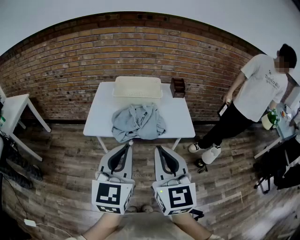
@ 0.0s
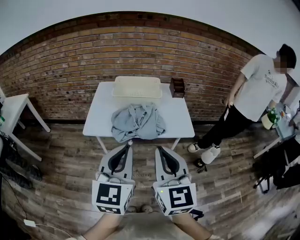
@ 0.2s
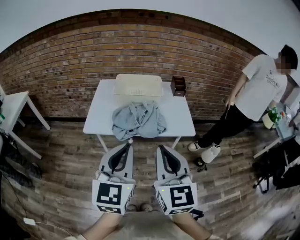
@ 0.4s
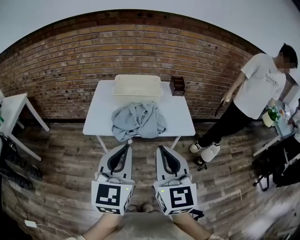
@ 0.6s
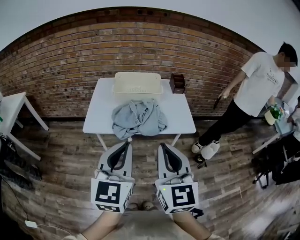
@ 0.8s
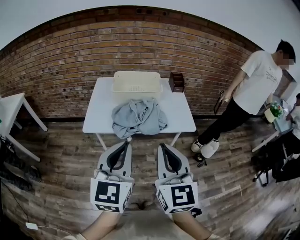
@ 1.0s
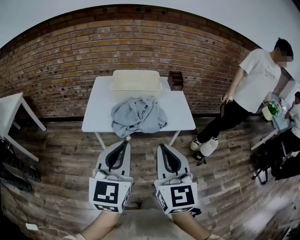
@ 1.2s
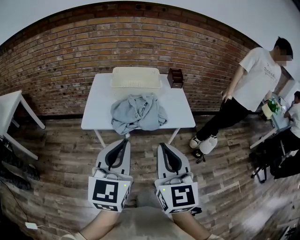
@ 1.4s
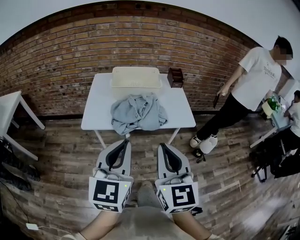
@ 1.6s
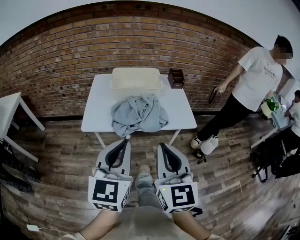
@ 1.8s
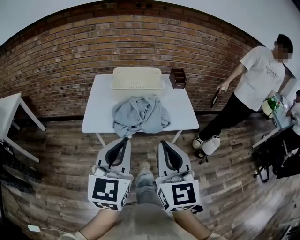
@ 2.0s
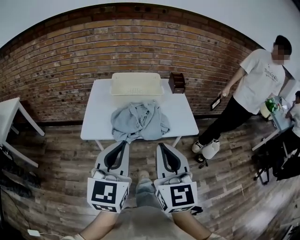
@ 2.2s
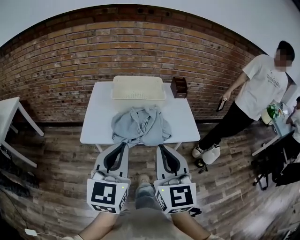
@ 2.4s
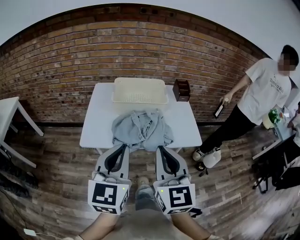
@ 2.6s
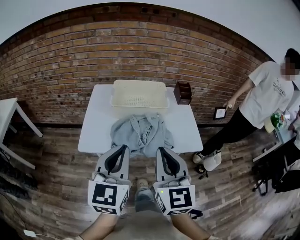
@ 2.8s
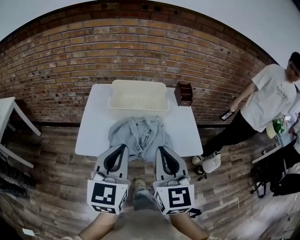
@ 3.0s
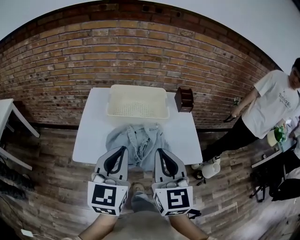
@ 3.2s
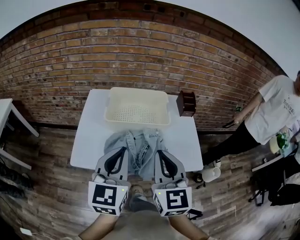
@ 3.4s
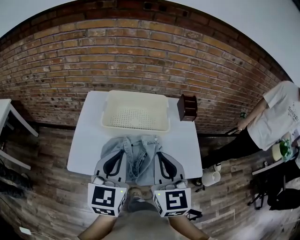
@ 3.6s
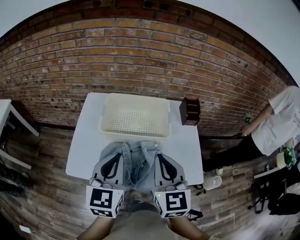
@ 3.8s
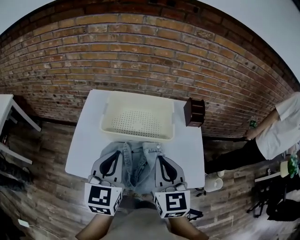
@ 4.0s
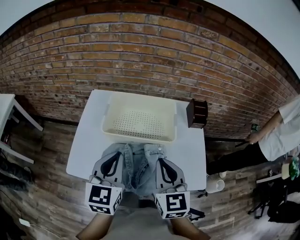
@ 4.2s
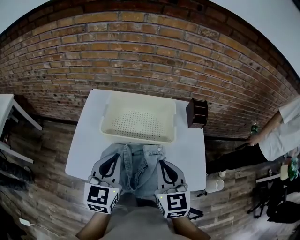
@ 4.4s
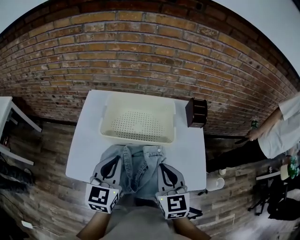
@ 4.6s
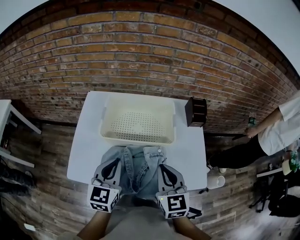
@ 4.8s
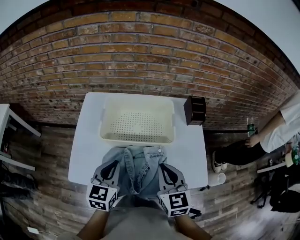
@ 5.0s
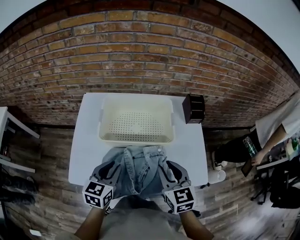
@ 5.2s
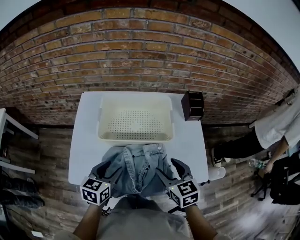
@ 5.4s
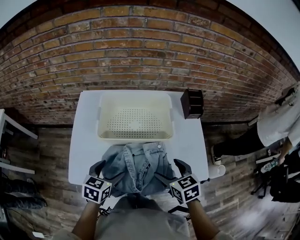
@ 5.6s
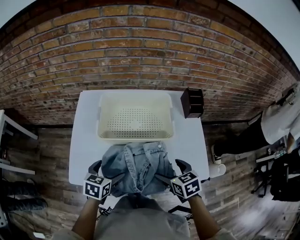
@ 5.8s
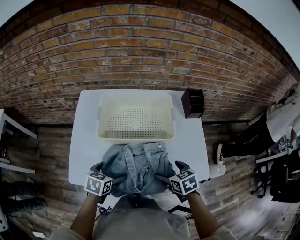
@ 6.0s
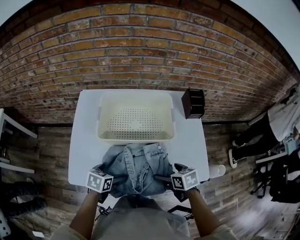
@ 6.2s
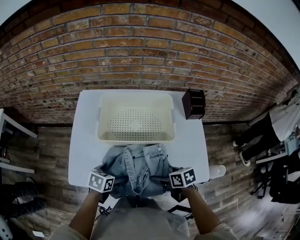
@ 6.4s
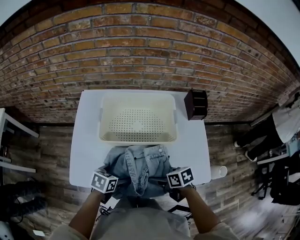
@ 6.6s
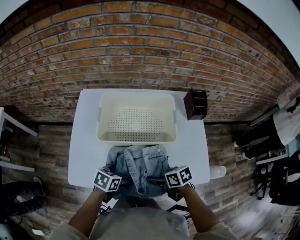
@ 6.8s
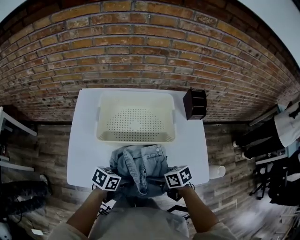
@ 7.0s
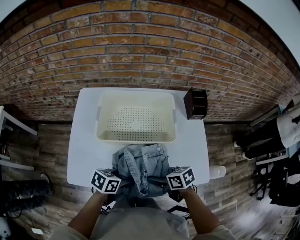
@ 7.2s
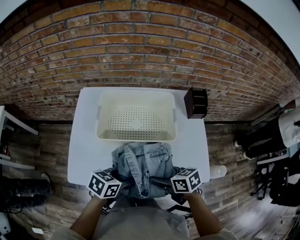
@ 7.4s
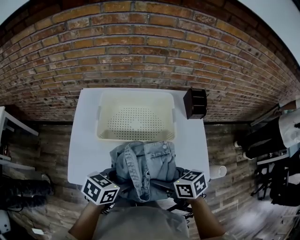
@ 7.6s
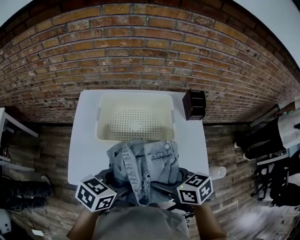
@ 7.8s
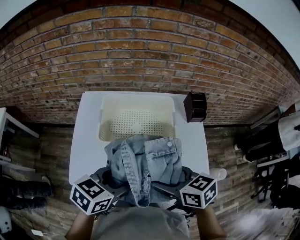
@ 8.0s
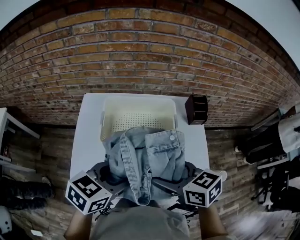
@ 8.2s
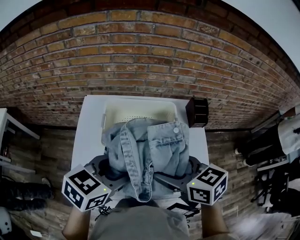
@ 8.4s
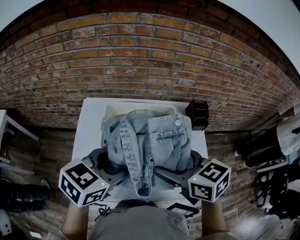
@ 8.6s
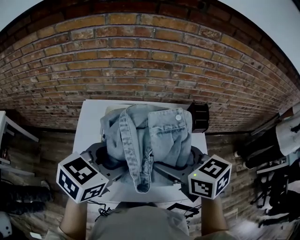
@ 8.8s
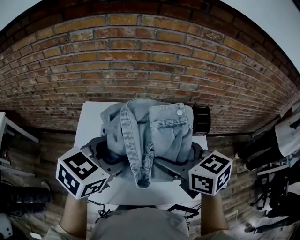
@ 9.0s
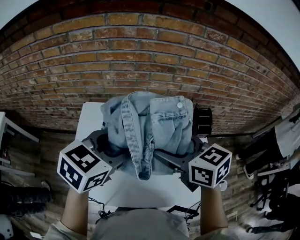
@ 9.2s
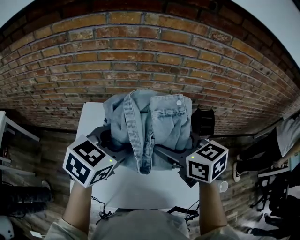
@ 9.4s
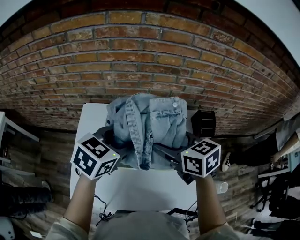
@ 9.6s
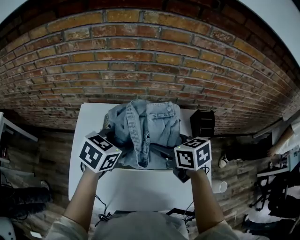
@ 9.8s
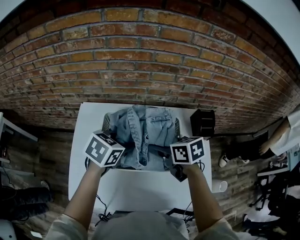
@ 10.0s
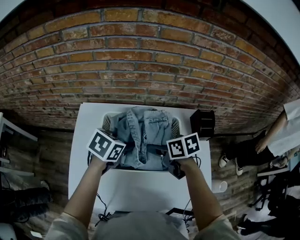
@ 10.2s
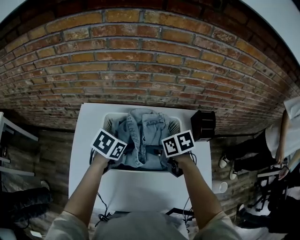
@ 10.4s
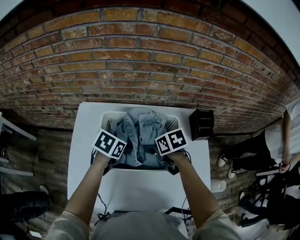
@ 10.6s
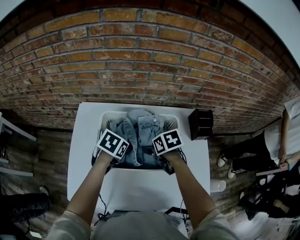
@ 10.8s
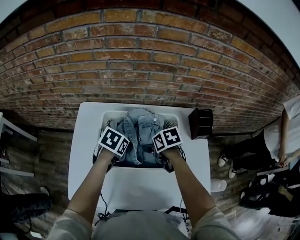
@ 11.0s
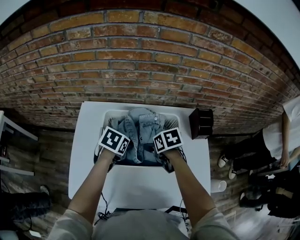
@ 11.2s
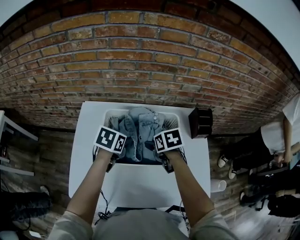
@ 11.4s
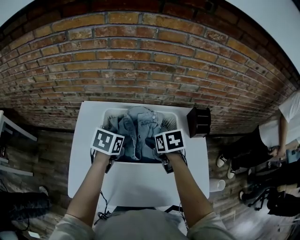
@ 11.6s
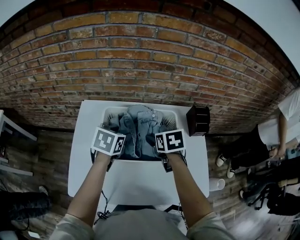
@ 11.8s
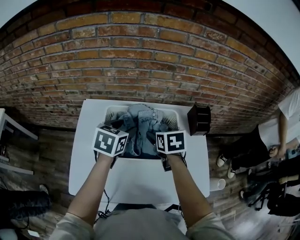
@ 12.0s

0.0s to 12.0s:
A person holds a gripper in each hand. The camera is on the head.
0.0s to 1.6s: The grippers make only small movements.
1.6s to 3.0s: The grippers both shift forward by roughly 20 cm.
3.0s to 4.4s: Both grippers move forward and downward, about 20 cm.
4.4s to 6.0s: The two grippers go approximately 20 cm downward. The right gripper points its fingers approximately 40 degrees further downward, and opens up. The left gripper angles its fingers downward, by approximately 40 degrees, and opens.
6.0s to 7.6s: Both grippers move upward, roughly 10 cm. The right gripper changes its angle by roughly 20 degrees, while the left gripper closes up.
7.6s to 9.0s: The grippers both shift upward and forward by roughly 25 cm. The right gripper swivels some 20 degrees; the left gripper changes its angle by about 30 degrees.
9.0s to 10.4s: The grippers both shift downward and forward by some 25 cm. The left gripper rotates roughly 30 degrees, while the right gripper turns by approximately 30 degrees.
10.4s to 12.0s: The left gripper goes approximately 10 cm upward, and swivels approximately 20 degrees, while the right gripper ends up about 5 cm from where it was, and turns by about 30 degrees.

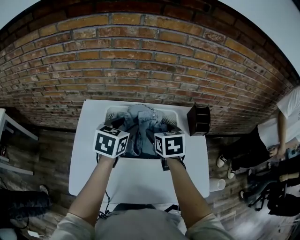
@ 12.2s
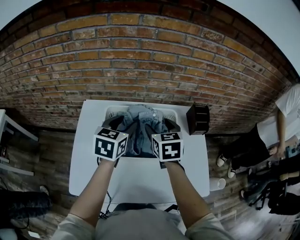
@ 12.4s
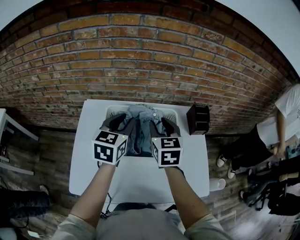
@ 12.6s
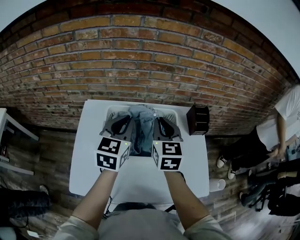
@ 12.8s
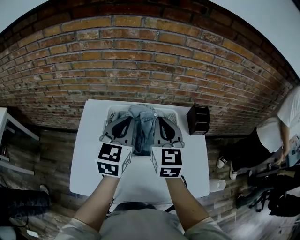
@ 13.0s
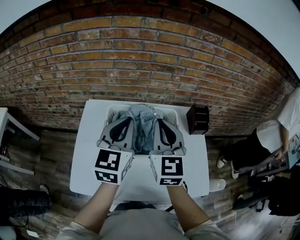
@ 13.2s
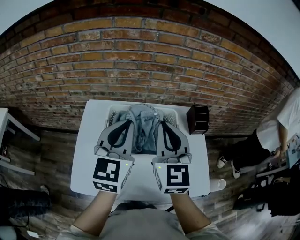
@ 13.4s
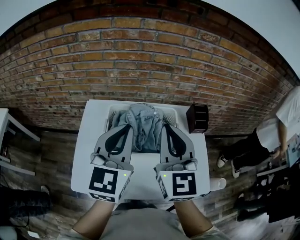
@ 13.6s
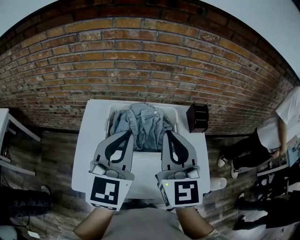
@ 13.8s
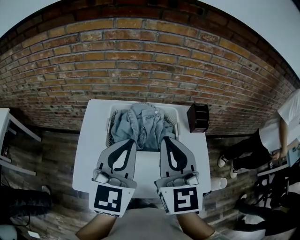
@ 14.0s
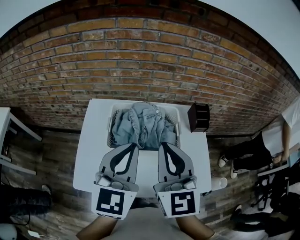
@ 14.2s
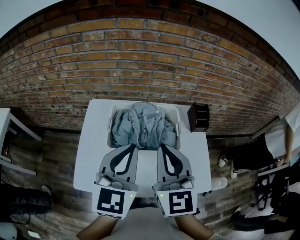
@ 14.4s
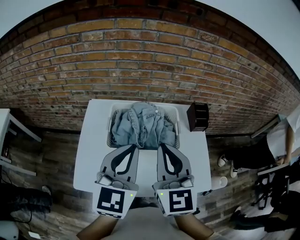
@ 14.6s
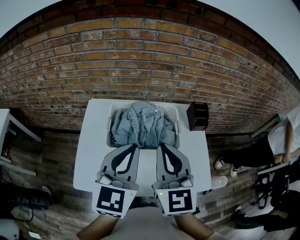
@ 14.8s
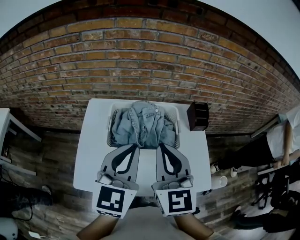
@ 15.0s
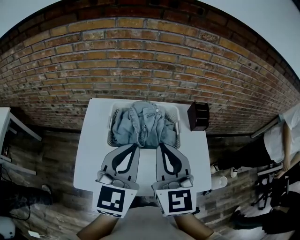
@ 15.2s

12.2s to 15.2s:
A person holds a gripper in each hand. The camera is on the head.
12.2s to 13.8s: Both grippers move upward and backward, about 25 cm. The right gripper angles its fingers upward, by about 40 degrees, and closes, while the left gripper turns by approximately 30 degrees, and closes its fingers.
13.8s to 15.2s: The right gripper moves approximately 5 cm.

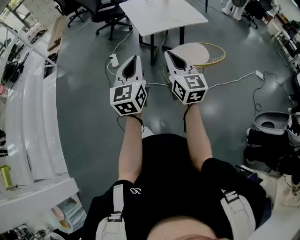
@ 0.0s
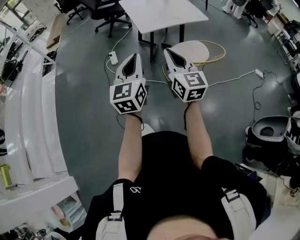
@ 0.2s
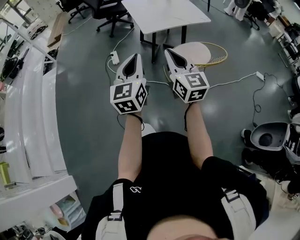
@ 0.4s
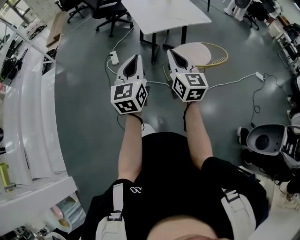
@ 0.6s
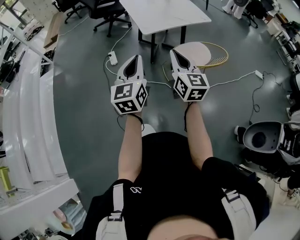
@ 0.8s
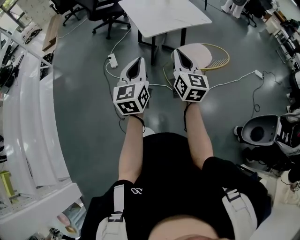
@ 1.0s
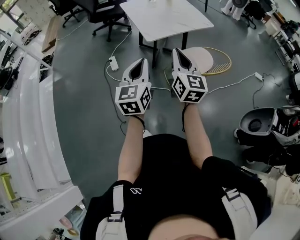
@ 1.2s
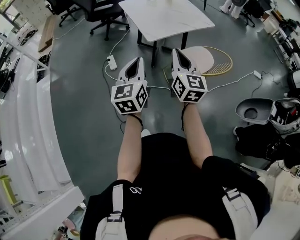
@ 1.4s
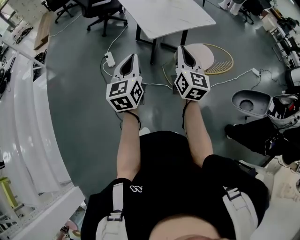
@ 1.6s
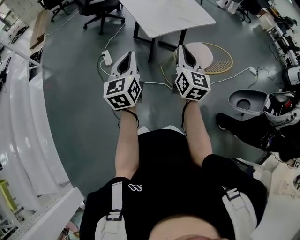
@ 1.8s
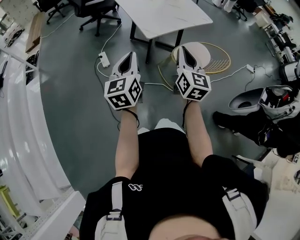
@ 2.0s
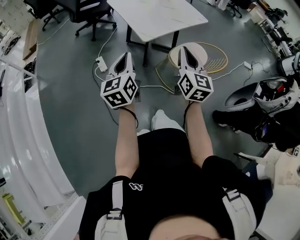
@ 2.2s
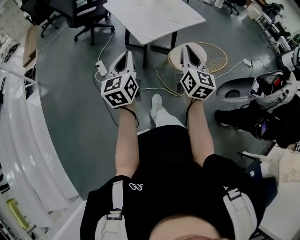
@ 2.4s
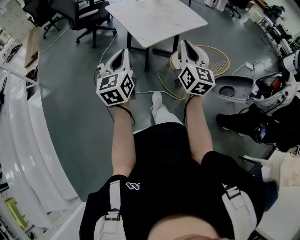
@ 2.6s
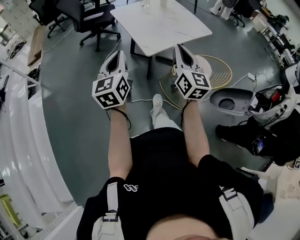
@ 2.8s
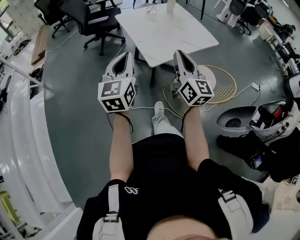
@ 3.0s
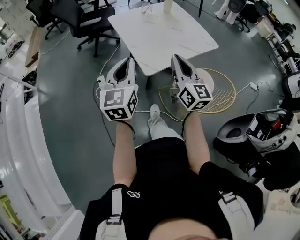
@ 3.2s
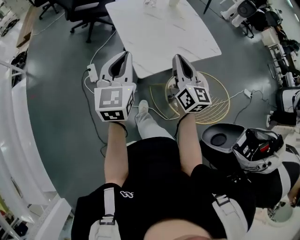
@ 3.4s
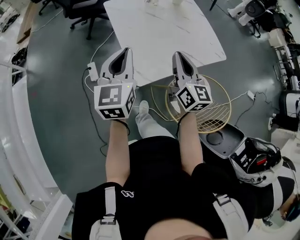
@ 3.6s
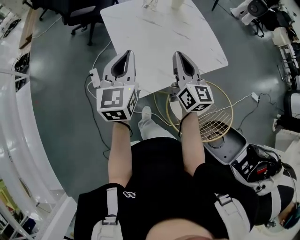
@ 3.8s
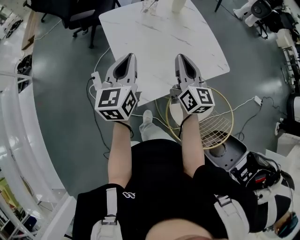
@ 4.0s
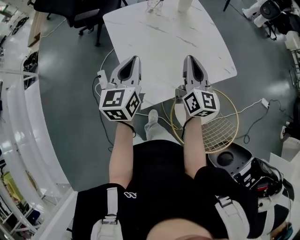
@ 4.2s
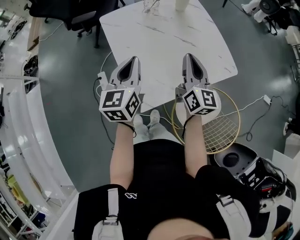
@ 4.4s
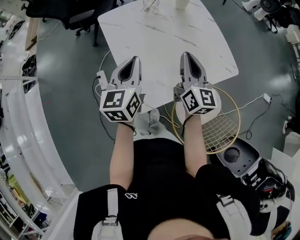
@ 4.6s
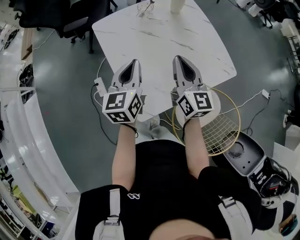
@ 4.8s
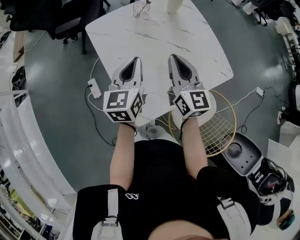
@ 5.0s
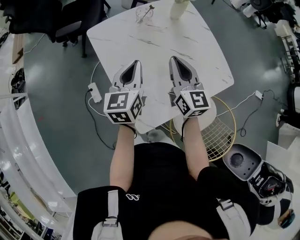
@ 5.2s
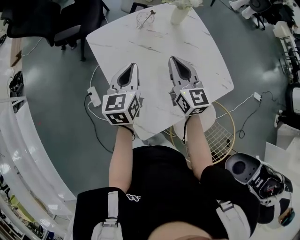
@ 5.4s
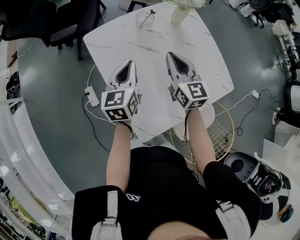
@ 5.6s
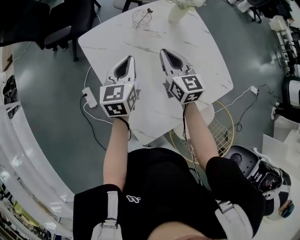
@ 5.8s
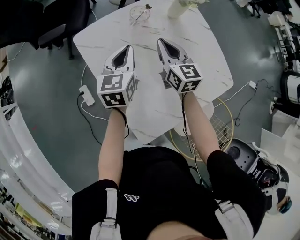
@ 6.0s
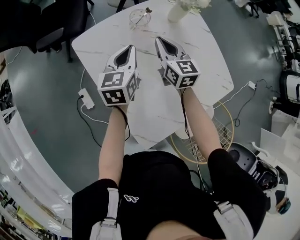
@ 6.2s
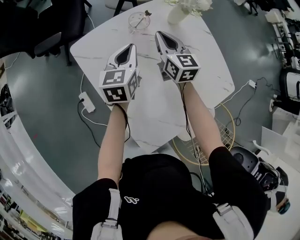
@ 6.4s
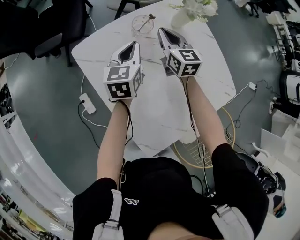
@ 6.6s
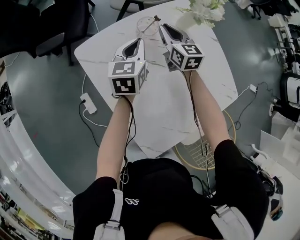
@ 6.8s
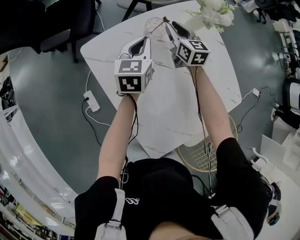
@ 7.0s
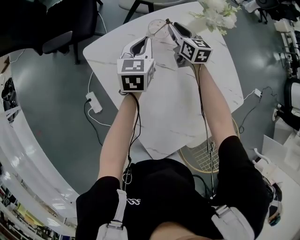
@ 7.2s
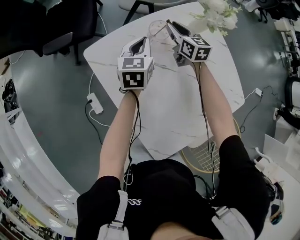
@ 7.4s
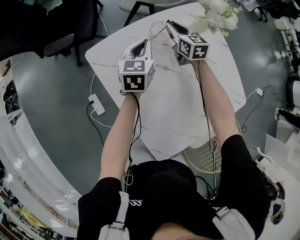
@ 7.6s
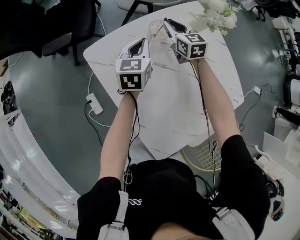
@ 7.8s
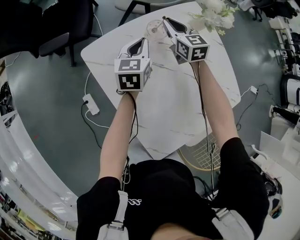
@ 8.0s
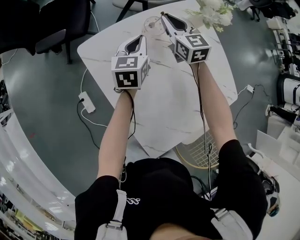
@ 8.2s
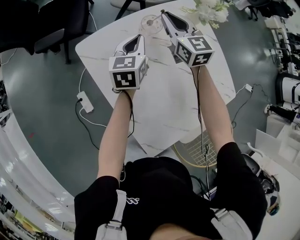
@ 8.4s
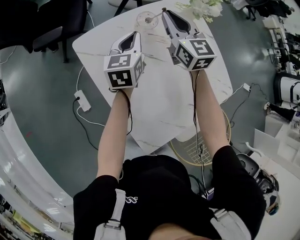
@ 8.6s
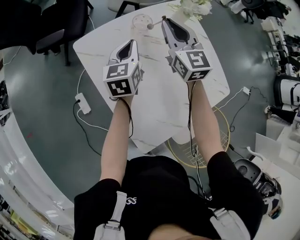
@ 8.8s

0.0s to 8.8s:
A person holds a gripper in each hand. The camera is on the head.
0.0s to 1.4s: The right gripper heads forward, covering about 15 cm. The left gripper moves forward and to the left, about 15 cm.
1.4s to 3.0s: The two grippers go about 20 cm forward.
3.0s to 4.4s: The two grippers go about 40 cm forward.
4.4s to 5.8s: The right gripper shifts approximately 25 cm forward, downward and to the left, and changes its angle by approximately 20 degrees. Meanwhile the left gripper moves forward and downward, approximately 25 cm.
5.8s to 7.4s: The left gripper shifts about 20 cm forward. The right gripper shifts about 25 cm forward and downward, and opens its fingers.
7.4s to 8.8s: The right gripper moves upward and backward, about 20 cm, and rotates approximately 30 degrees, while the left gripper heads backward, covering about 10 cm.
